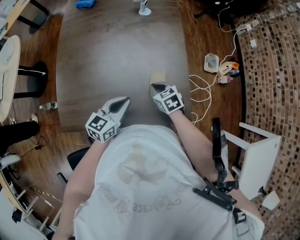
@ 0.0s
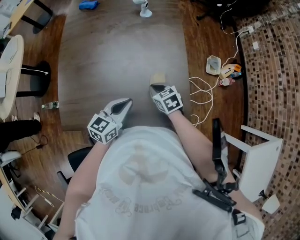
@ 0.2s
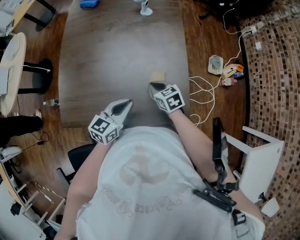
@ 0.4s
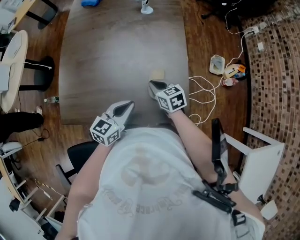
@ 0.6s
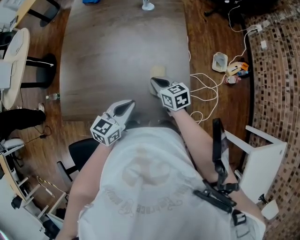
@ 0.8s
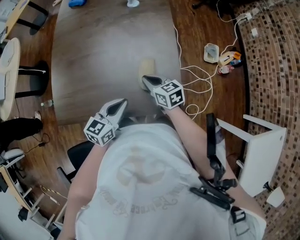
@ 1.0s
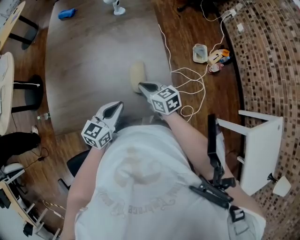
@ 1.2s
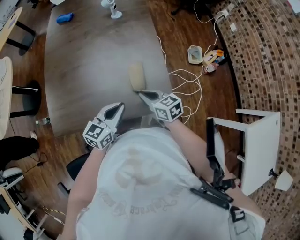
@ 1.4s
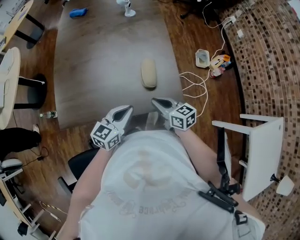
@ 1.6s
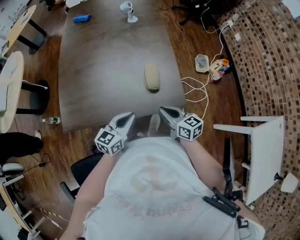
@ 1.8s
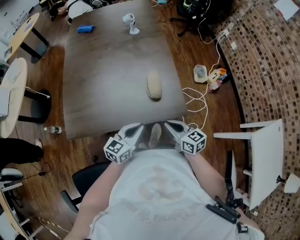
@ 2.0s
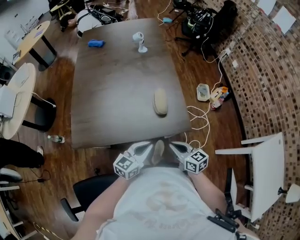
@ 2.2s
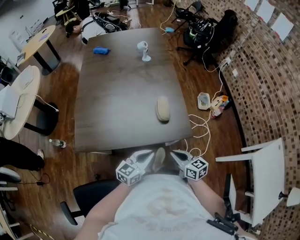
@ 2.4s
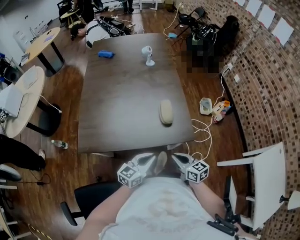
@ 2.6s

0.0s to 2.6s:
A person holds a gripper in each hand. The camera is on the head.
0.0s to 1.2s: The left gripper moves backward, some 5 cm. Meanwhile the right gripper shifts by about 5 cm, and changes its angle by about 20 degrees.
1.2s to 2.6s: Both grippers move backward, approximately 20 cm.

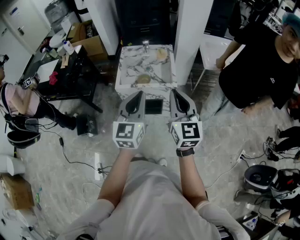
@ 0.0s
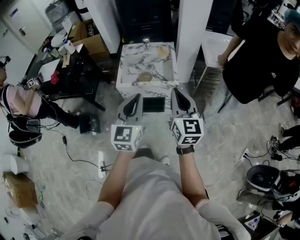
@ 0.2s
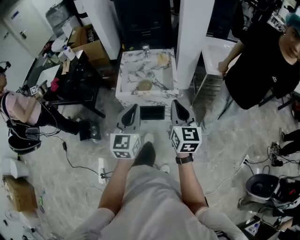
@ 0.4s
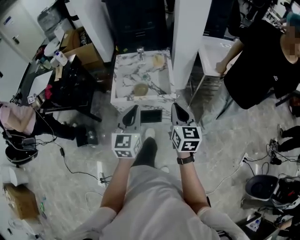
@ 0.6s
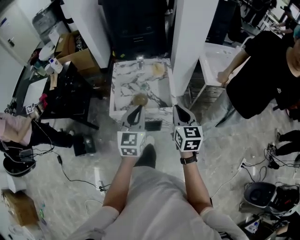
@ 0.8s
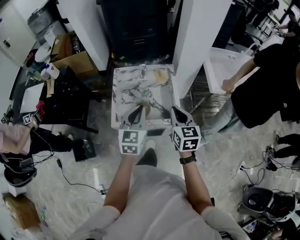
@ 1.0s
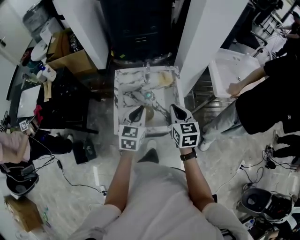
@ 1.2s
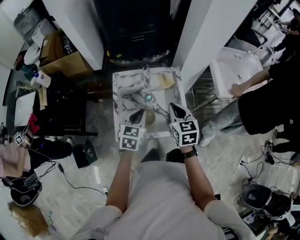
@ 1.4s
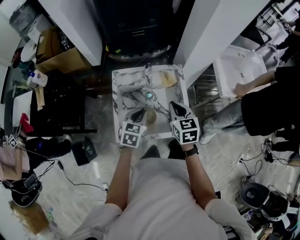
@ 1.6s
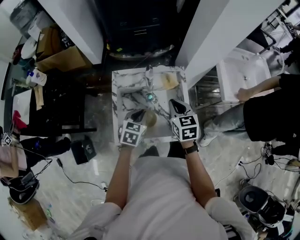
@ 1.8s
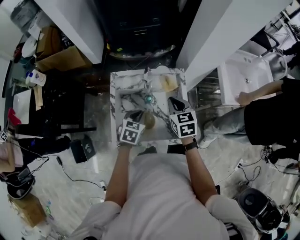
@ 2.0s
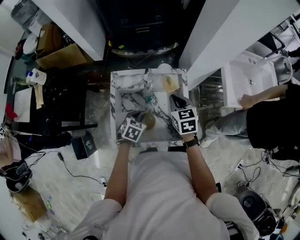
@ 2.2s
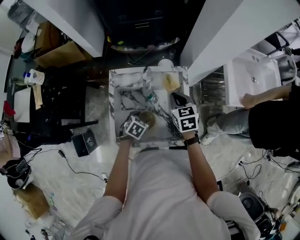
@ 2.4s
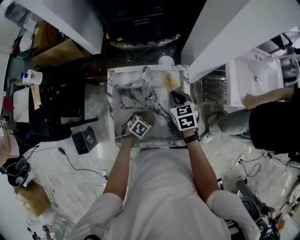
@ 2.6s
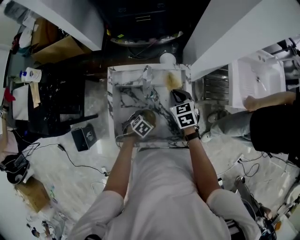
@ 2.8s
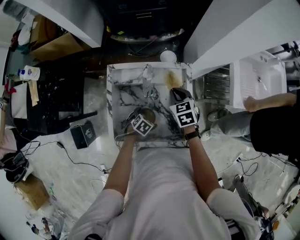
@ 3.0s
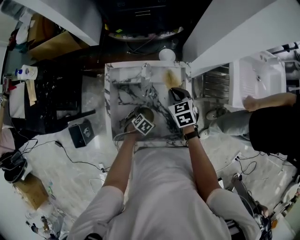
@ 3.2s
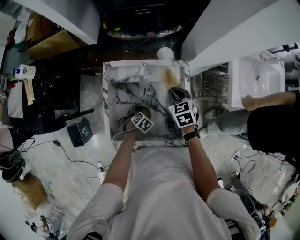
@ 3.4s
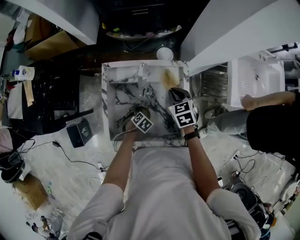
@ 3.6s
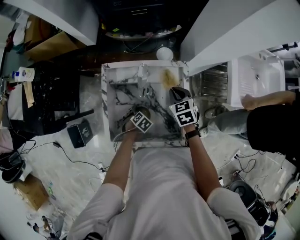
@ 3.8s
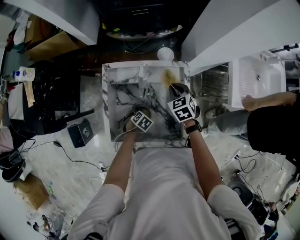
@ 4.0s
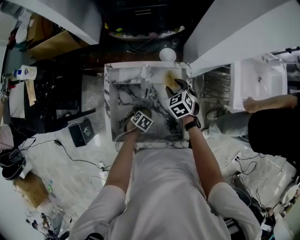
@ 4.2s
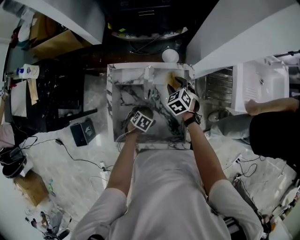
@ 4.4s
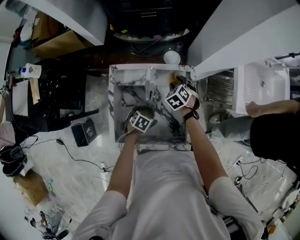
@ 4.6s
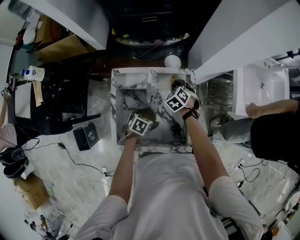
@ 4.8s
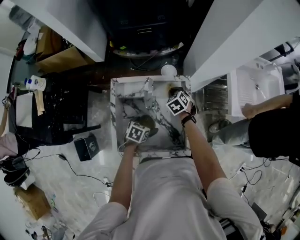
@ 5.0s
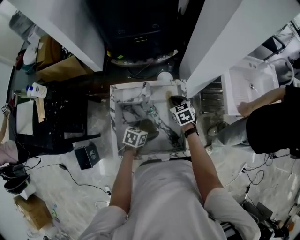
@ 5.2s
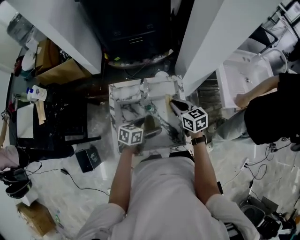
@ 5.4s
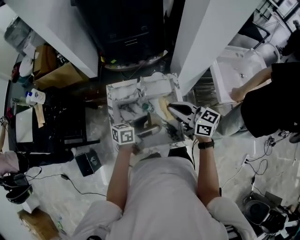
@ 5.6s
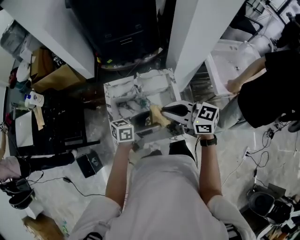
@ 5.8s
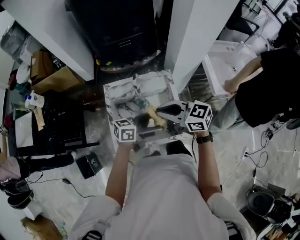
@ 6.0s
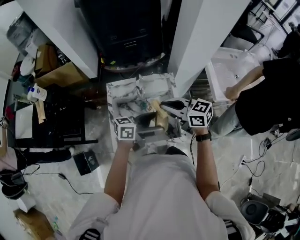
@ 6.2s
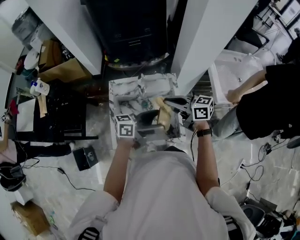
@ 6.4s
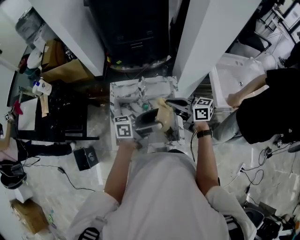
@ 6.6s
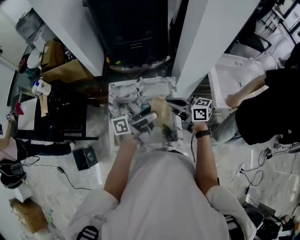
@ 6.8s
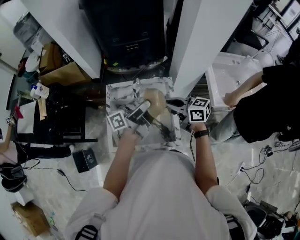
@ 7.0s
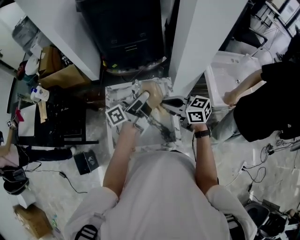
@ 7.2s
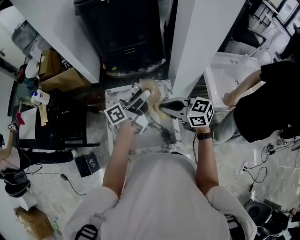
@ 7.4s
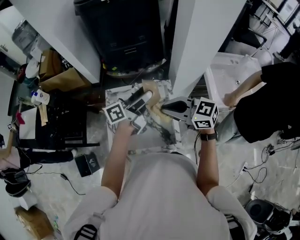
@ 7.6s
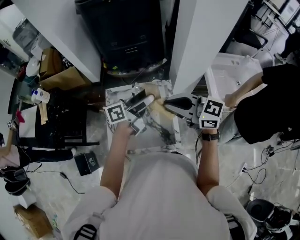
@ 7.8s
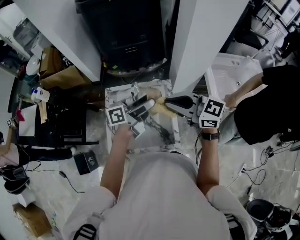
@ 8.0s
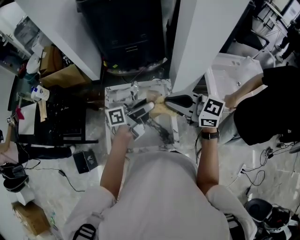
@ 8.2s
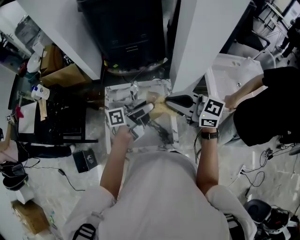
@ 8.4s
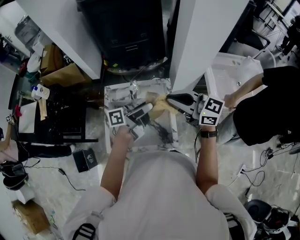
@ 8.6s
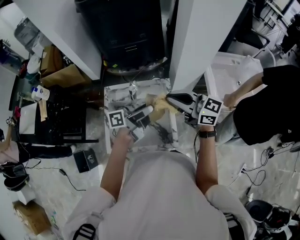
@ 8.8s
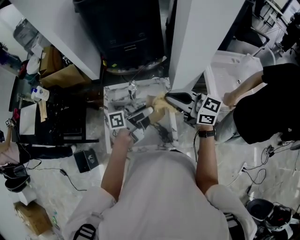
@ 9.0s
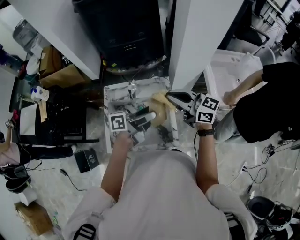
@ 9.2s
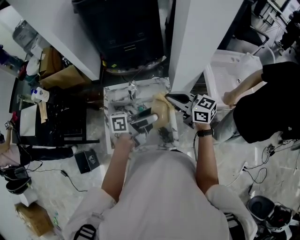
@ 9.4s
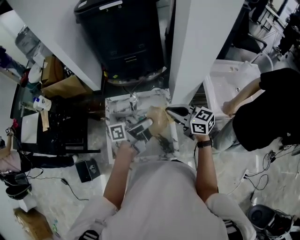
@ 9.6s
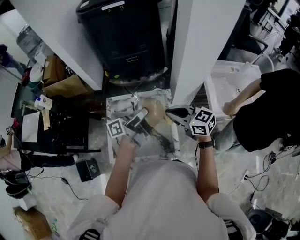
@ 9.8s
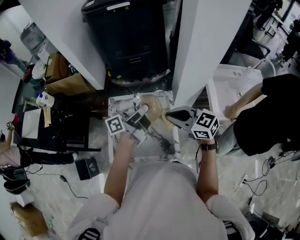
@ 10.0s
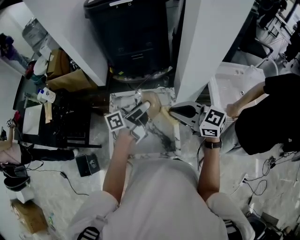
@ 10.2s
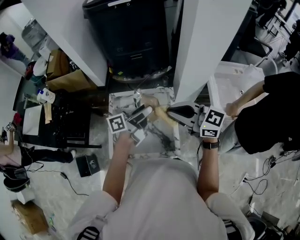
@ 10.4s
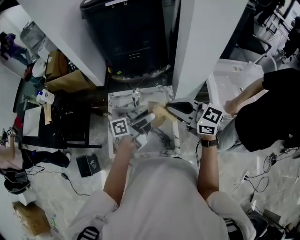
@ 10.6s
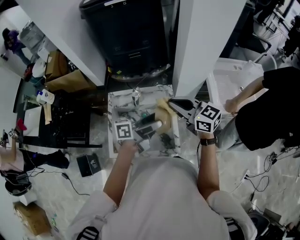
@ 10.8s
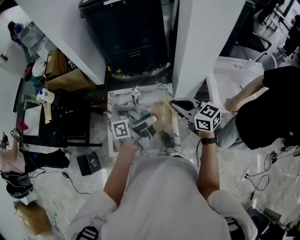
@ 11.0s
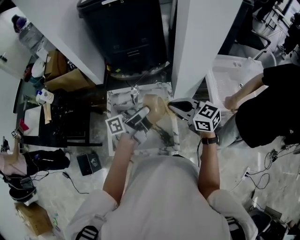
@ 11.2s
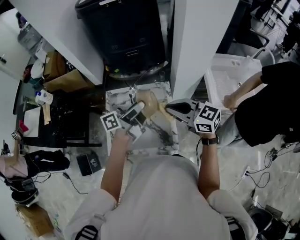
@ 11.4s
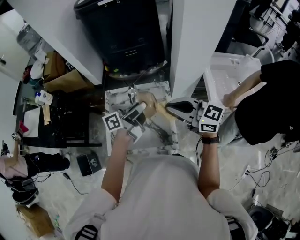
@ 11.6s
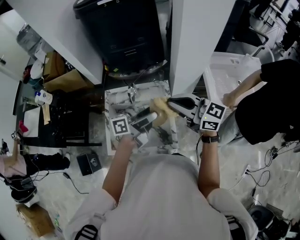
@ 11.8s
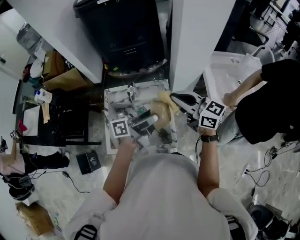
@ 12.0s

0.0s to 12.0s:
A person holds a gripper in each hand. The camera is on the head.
0.0s to 1.6s: Both grippers move forward and downward, roughly 40 cm. The left gripper tilts its fingers some 40 degrees downward. The right gripper tilts its fingers about 30 degrees downward.
1.6s to 3.0s: The right gripper travels forward and downward by roughly 20 cm, and rotates approximately 20 degrees; the left gripper heads downward, covering about 25 cm, tips its fingers downward by approximately 30 degrees, and opens.
3.0s to 4.4s: The right gripper shifts roughly 5 cm downward, rotates approximately 20 degrees, and opens.
4.4s to 6.0s: The grippers both shift upward by roughly 30 cm. The left gripper tips its fingers upward by approximately 70 degrees. The right gripper tips its fingers upward by about 40 degrees, and closes its fingers.
6.0s to 7.6s: The left gripper changes place by some 20 cm, and rotates approximately 30 degrees. Meanwhile the right gripper ends up roughly 10 cm from where it was.
7.6s to 9.0s: The left gripper changes place by about 10 cm. The right gripper moves roughly 5 cm.
9.0s to 10.4s: The right gripper reaches some 10 cm downward, then returns.
10.4s to 12.0s: The left gripper swings forward and backward, roughly 5 cm each way, with 2 reversals. The right gripper shifts by some 5 cm.

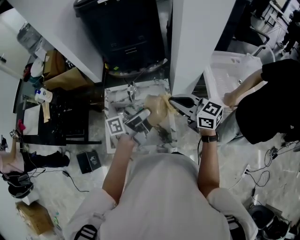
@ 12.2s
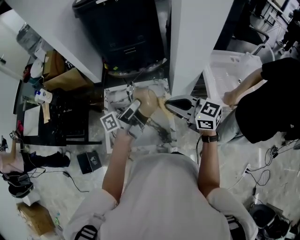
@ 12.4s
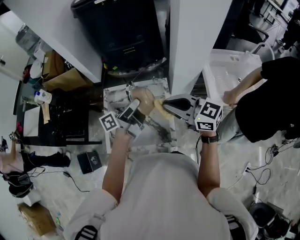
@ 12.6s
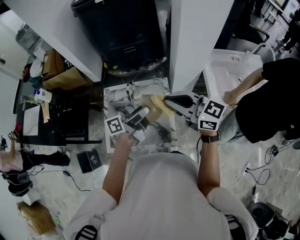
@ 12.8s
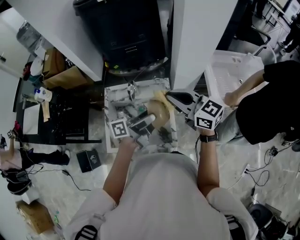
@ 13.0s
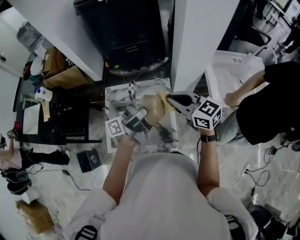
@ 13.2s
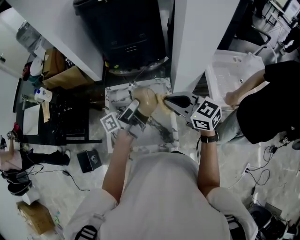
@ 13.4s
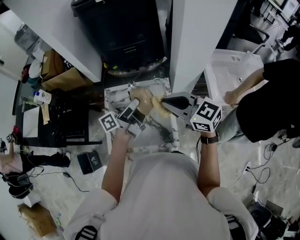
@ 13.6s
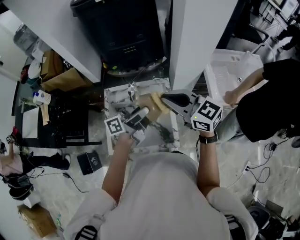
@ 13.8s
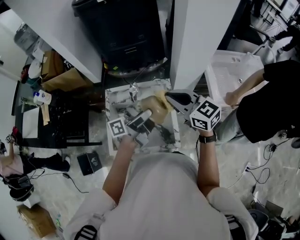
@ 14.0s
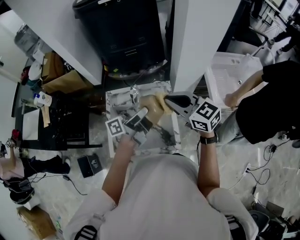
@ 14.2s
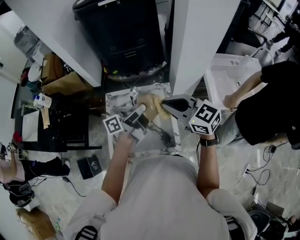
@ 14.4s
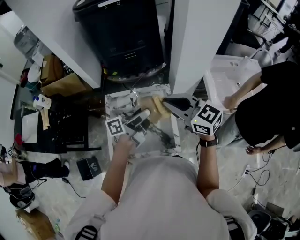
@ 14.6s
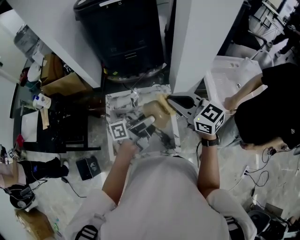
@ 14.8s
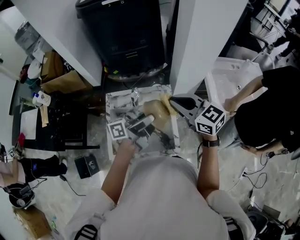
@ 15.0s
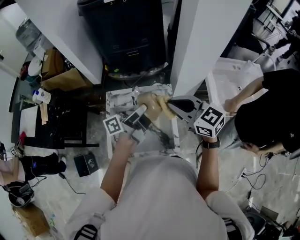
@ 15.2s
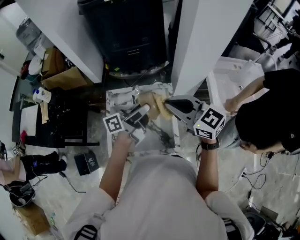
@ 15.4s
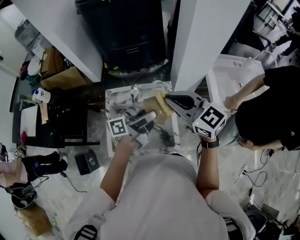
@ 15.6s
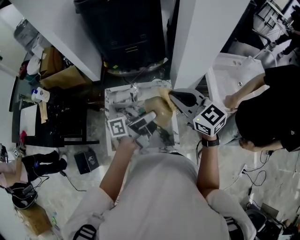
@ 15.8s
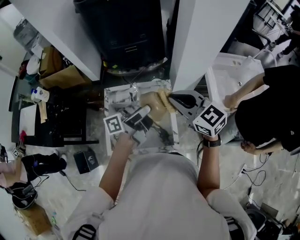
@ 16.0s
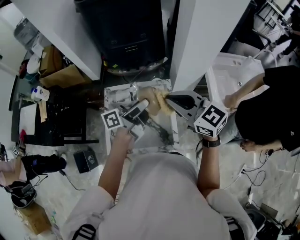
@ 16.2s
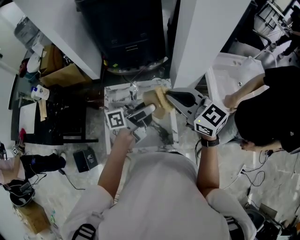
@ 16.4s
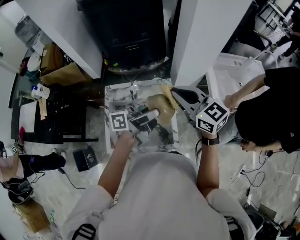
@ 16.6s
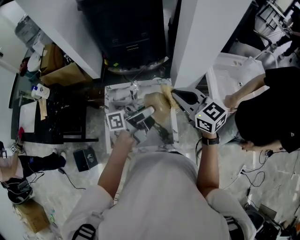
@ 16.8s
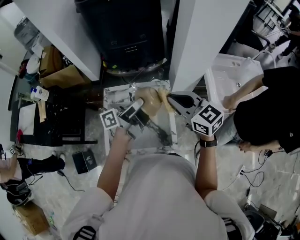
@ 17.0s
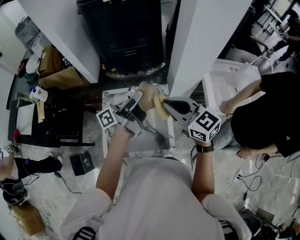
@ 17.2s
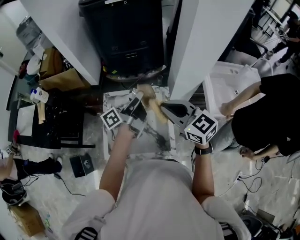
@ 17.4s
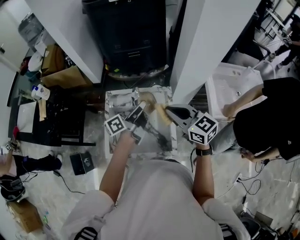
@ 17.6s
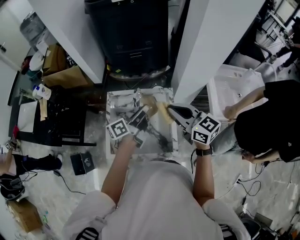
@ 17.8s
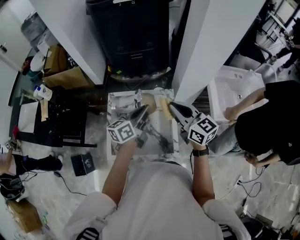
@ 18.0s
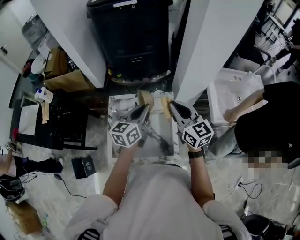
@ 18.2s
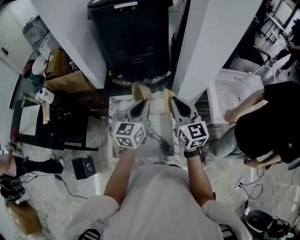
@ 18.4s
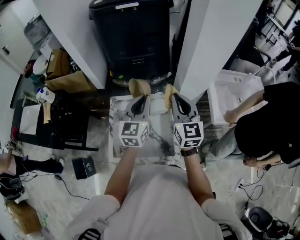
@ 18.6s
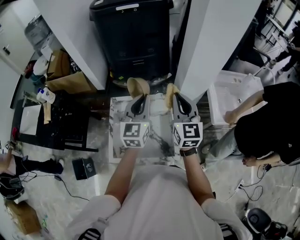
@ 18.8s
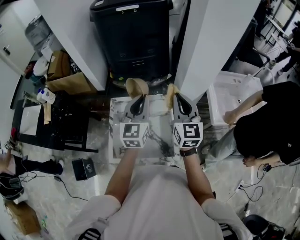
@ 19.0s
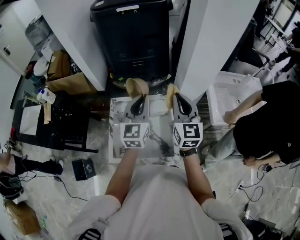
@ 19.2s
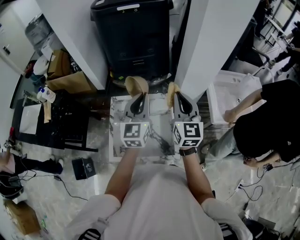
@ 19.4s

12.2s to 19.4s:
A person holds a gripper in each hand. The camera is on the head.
12.2s to 13.6s: The right gripper shifts by approximately 5 cm. The left gripper moves forward and backward over some 5 cm, changing direction 2 times.
13.6s to 15.0s: The left gripper changes place by some 5 cm.
15.0s to 16.6s: The grippers stay close to where they were, moving slightly.
16.6s to 18.0s: The left gripper heads to the left, downward and forward, covering some 15 cm, changes its angle by some 50 degrees, and closes up.
18.0s to 19.4s: The left gripper travels upward by about 10 cm, and rolls clockwise, seen from behind, by some 40 degrees, while the right gripper is displaced upward by some 5 cm, and swivels roughly 40 degrees.

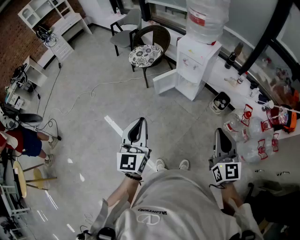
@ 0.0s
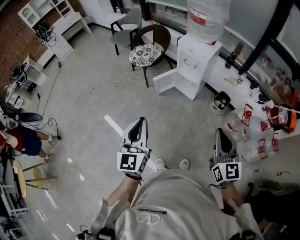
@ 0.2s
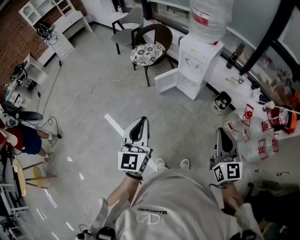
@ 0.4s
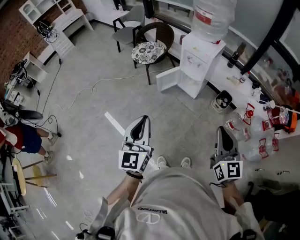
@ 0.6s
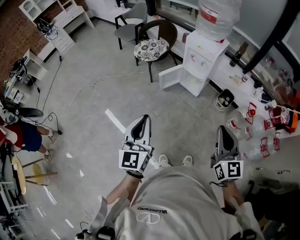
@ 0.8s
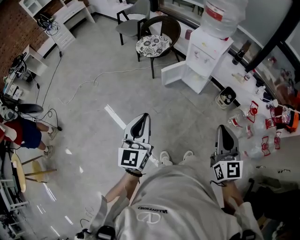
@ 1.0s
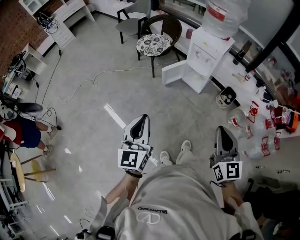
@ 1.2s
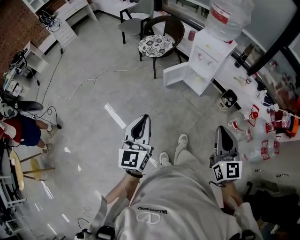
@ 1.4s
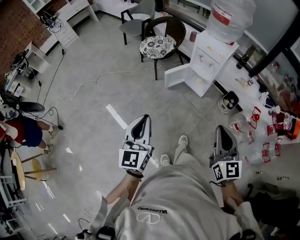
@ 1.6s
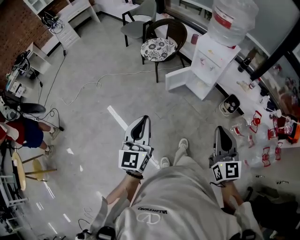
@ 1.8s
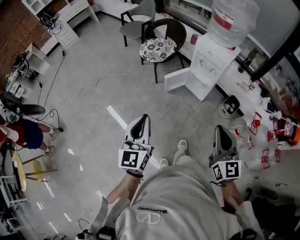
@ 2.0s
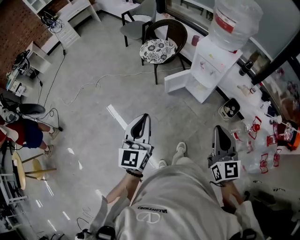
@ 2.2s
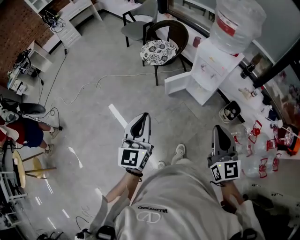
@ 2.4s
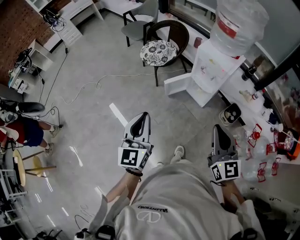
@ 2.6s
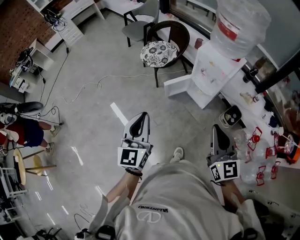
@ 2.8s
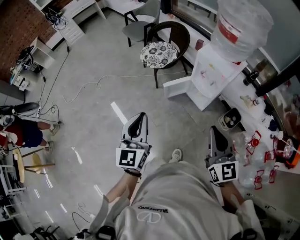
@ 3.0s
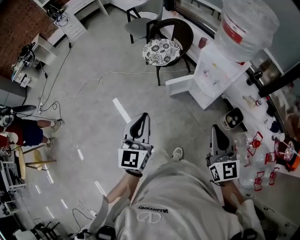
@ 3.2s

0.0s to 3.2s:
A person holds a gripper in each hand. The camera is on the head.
0.0s to 1.6s: The grippers both shift to the left by some 10 cm.
1.6s to 3.2s: The right gripper moves forward, about 20 cm. Meanwhile the left gripper goes some 20 cm forward and to the right.
